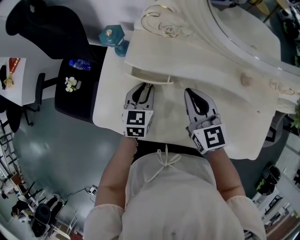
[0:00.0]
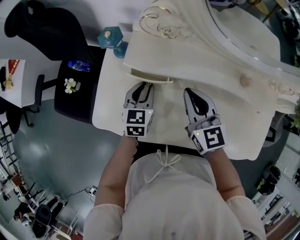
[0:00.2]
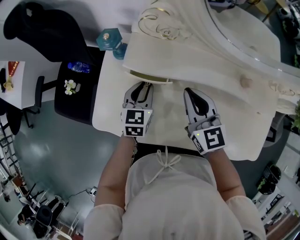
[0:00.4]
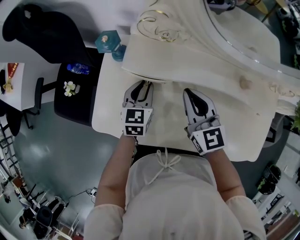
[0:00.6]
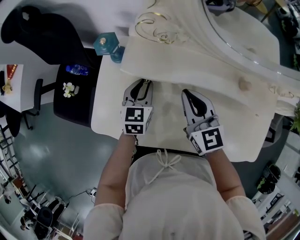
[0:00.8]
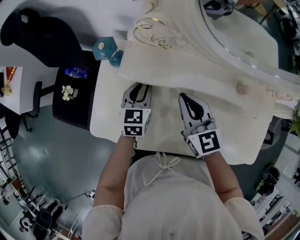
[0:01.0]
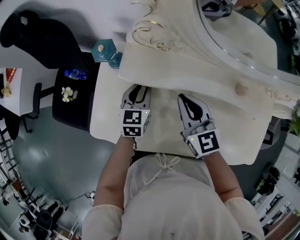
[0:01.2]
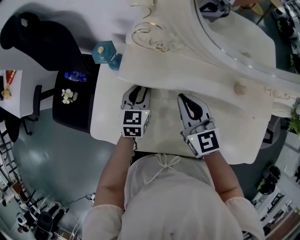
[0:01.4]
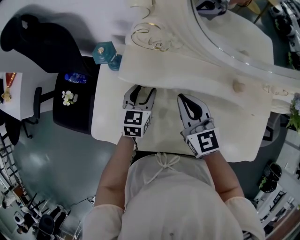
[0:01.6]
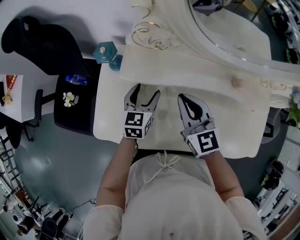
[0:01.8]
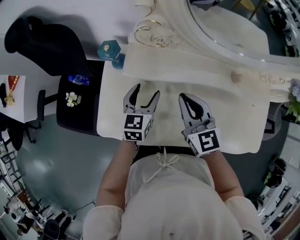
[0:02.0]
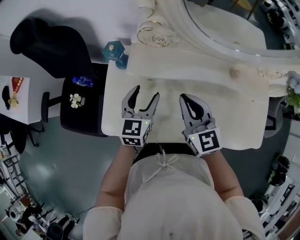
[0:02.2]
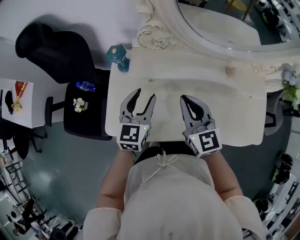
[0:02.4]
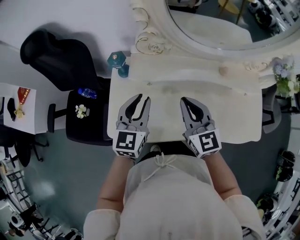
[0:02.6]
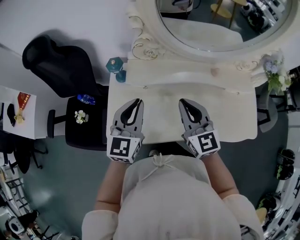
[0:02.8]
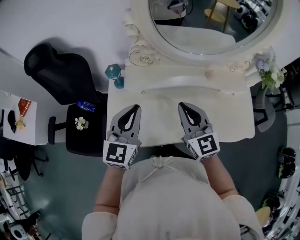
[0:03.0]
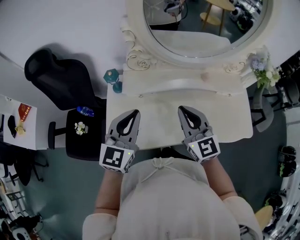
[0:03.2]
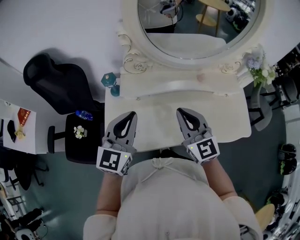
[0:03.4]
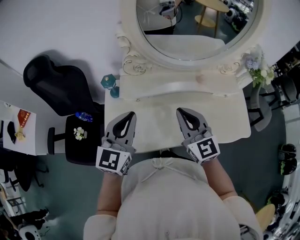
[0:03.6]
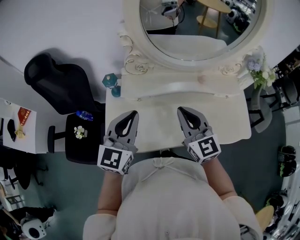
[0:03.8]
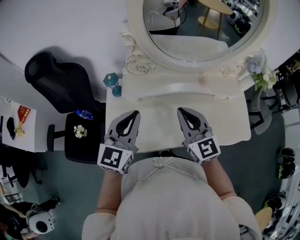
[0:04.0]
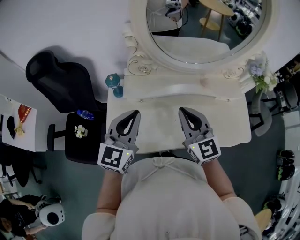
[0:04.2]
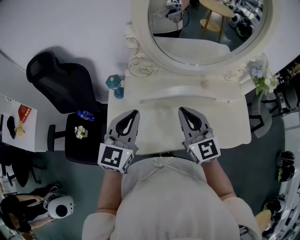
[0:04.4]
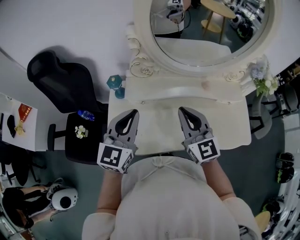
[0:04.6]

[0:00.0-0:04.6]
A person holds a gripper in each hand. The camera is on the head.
0:00.0 to 0:01.6: The left gripper changes place by approximately 5 cm.
0:01.6 to 0:03.0: The left gripper goes about 30 cm upward and backward, changes its angle by approximately 30 degrees, and closes. Meanwhile the right gripper goes some 20 cm upward and backward.
0:03.0 to 0:04.6: There are only small adjustments of the grippers.

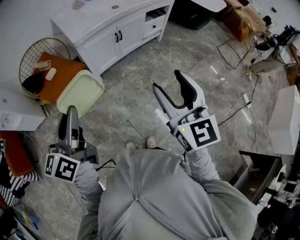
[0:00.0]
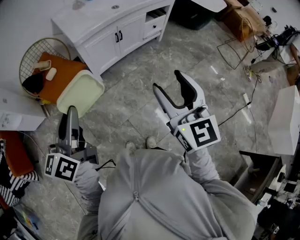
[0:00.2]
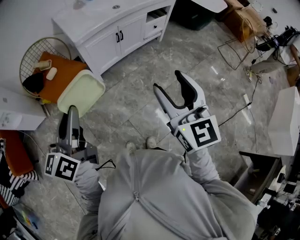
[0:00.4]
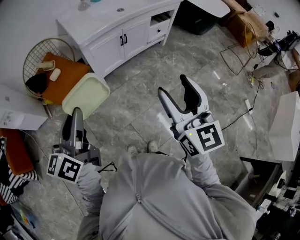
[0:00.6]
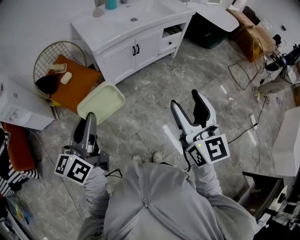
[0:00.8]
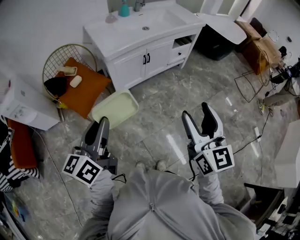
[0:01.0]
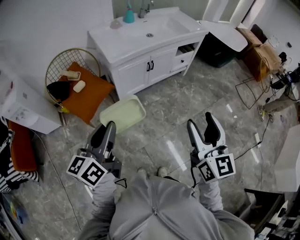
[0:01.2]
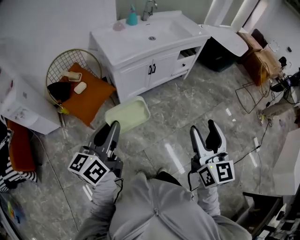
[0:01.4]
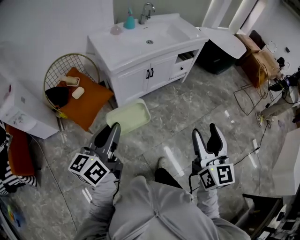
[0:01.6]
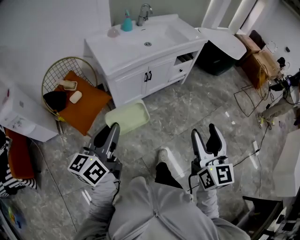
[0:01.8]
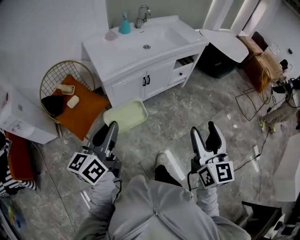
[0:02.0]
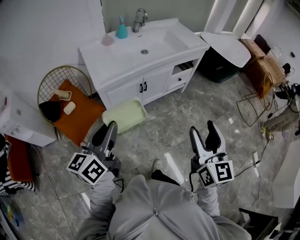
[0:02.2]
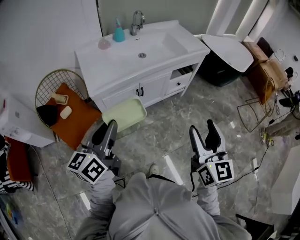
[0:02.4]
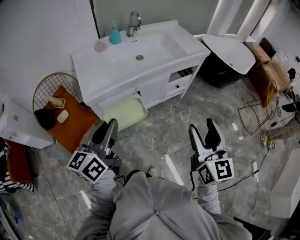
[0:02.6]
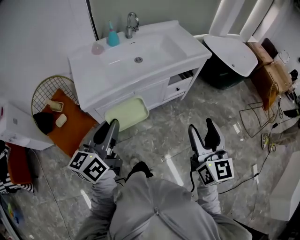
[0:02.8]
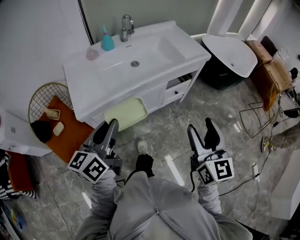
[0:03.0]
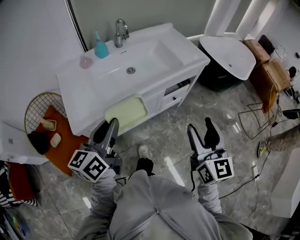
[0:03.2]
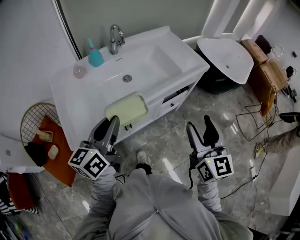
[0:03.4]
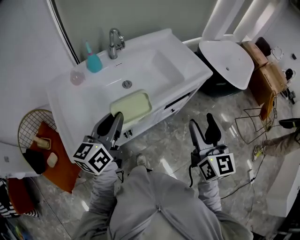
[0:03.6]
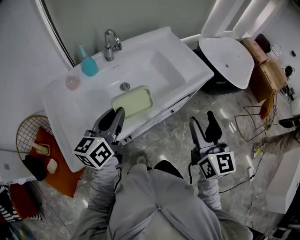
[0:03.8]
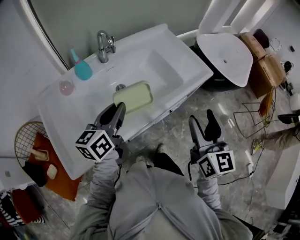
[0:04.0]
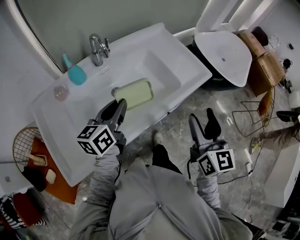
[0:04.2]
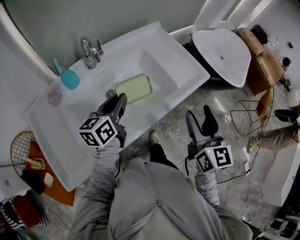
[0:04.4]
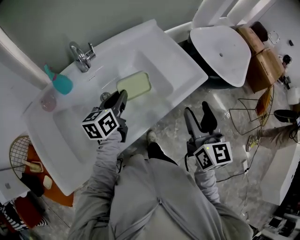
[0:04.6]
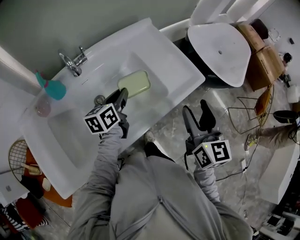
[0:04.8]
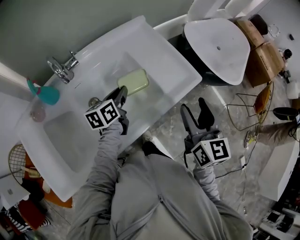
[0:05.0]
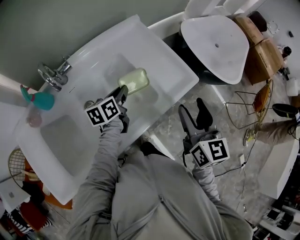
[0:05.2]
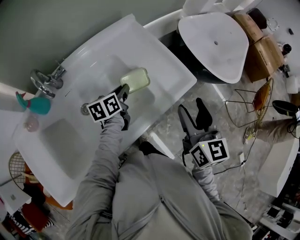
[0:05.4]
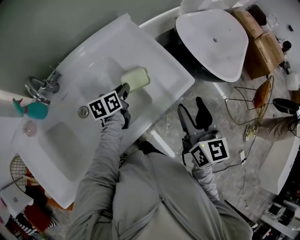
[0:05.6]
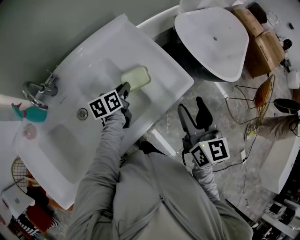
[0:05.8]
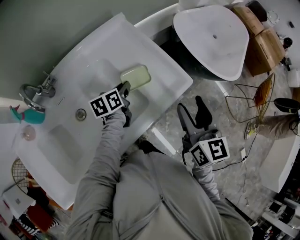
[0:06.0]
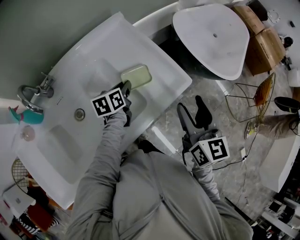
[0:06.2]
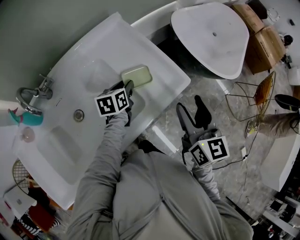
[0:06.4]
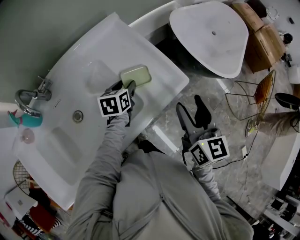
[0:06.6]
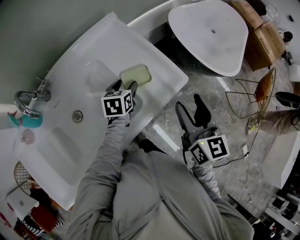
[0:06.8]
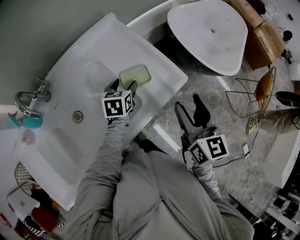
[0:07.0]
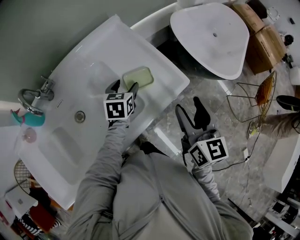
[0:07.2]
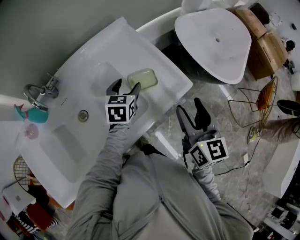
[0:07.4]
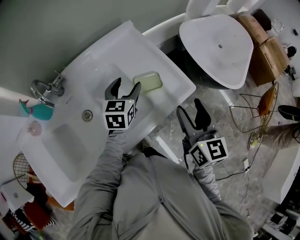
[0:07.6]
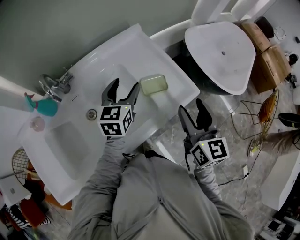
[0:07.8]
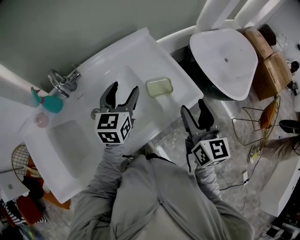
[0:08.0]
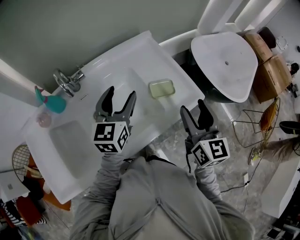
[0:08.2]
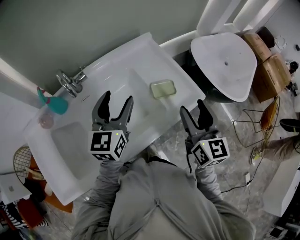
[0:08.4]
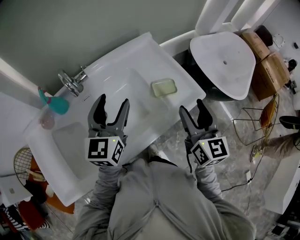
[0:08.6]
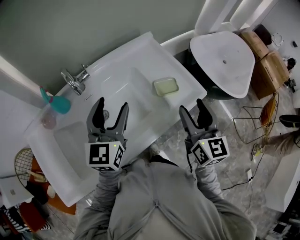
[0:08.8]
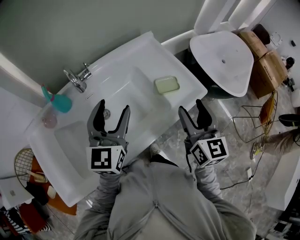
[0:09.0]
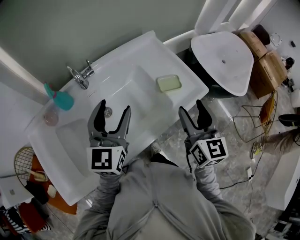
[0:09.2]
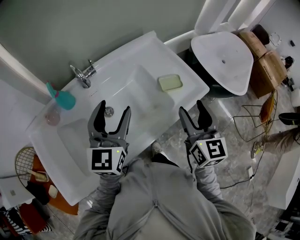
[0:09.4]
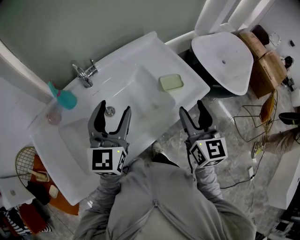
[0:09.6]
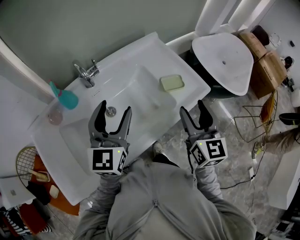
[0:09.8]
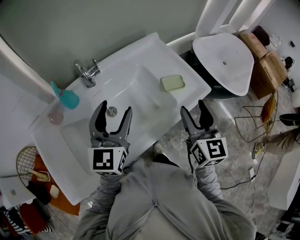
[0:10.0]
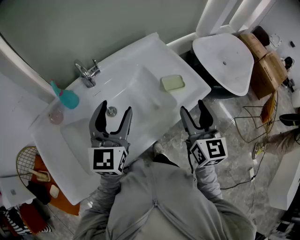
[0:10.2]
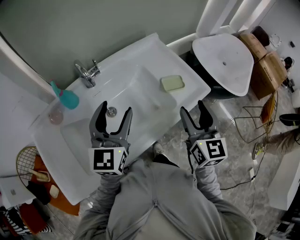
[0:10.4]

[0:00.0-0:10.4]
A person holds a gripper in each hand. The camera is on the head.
0:00.0 to 0:01.4: The left gripper changes place by about 5 cm.
0:01.4 to 0:03.0: Both grippers are carried forward and to the right, roughly 40 cm.
0:03.0 to 0:04.4: The two grippers go about 40 cm forward.
0:04.4 to 0:06.0: The left gripper travels forward, downward and to the right by roughly 35 cm, and swivels about 30 degrees. Meanwhile the right gripper moves forward and to the right, some 20 cm.
0:06.0 to 0:07.4: The left gripper travels upward by approximately 5 cm, rotates approximately 30 degrees, and opens.
0:07.4 to 0:09.0: The right gripper travels to the left by roughly 10 cm; the left gripper moves upward, to the left and backward, approximately 30 cm, and tips its fingers upward by about 30 degrees.
0:09.0 to 0:10.4: The grippers stay close to where they were, moving slightly.

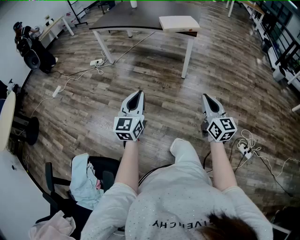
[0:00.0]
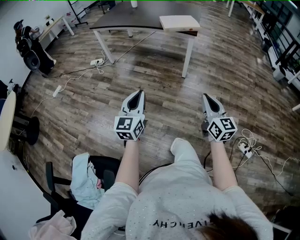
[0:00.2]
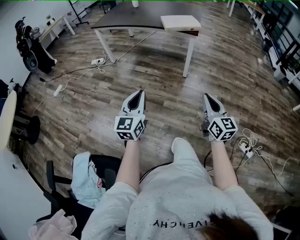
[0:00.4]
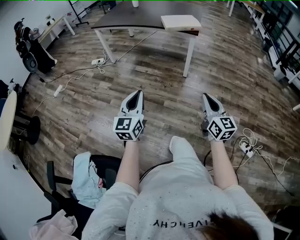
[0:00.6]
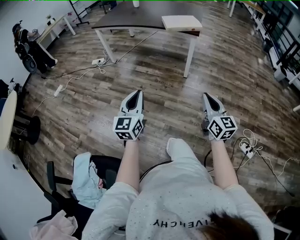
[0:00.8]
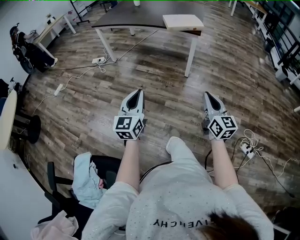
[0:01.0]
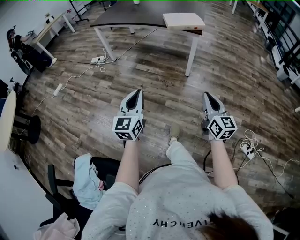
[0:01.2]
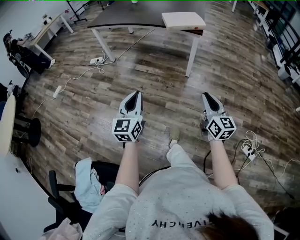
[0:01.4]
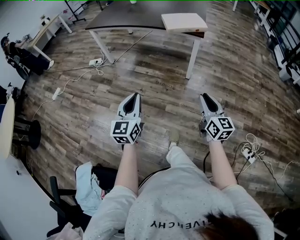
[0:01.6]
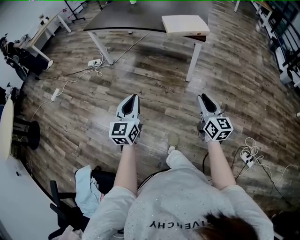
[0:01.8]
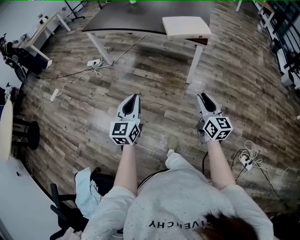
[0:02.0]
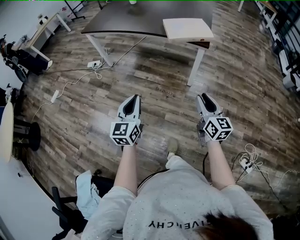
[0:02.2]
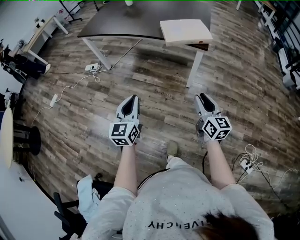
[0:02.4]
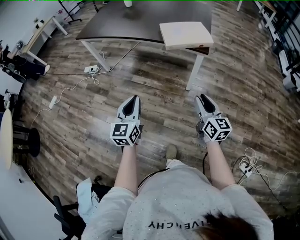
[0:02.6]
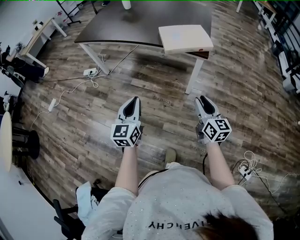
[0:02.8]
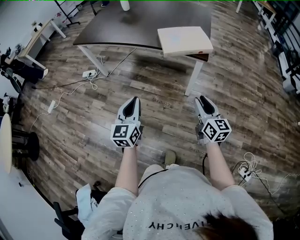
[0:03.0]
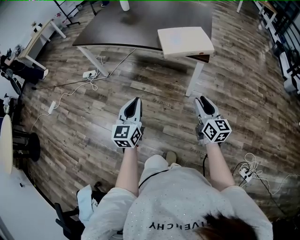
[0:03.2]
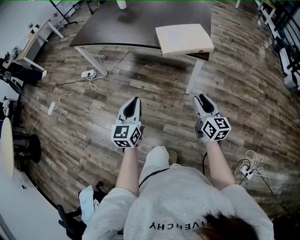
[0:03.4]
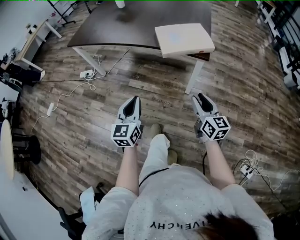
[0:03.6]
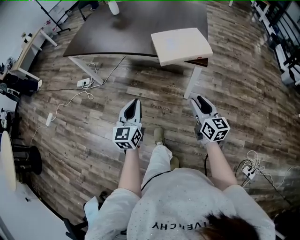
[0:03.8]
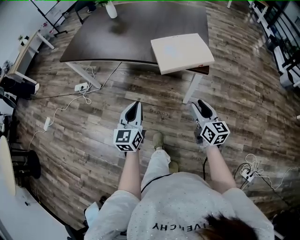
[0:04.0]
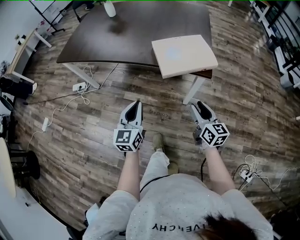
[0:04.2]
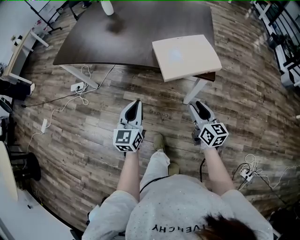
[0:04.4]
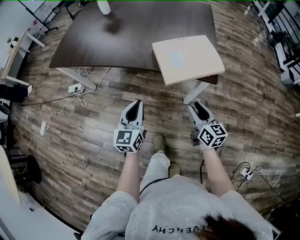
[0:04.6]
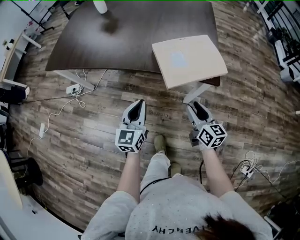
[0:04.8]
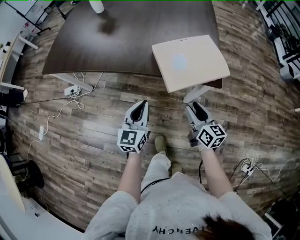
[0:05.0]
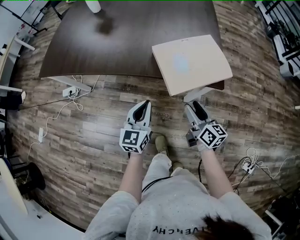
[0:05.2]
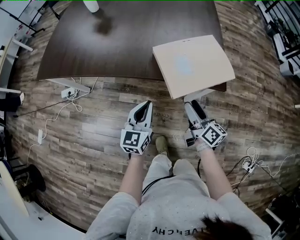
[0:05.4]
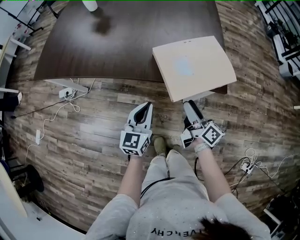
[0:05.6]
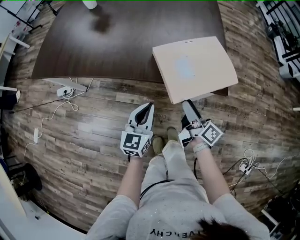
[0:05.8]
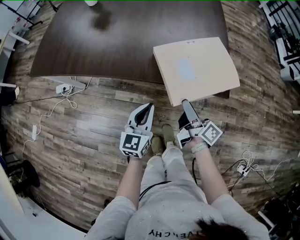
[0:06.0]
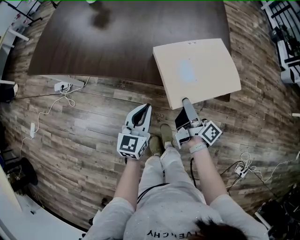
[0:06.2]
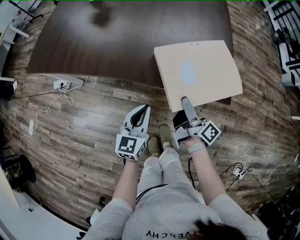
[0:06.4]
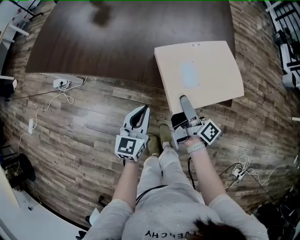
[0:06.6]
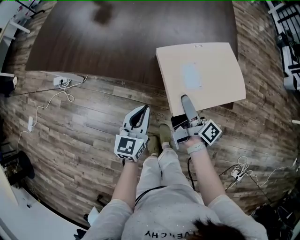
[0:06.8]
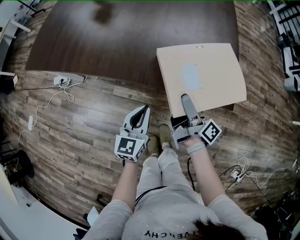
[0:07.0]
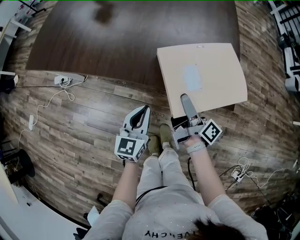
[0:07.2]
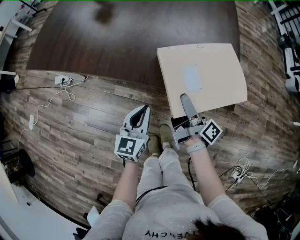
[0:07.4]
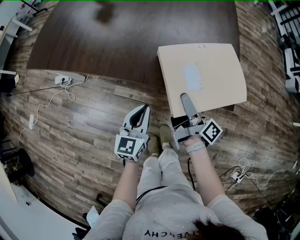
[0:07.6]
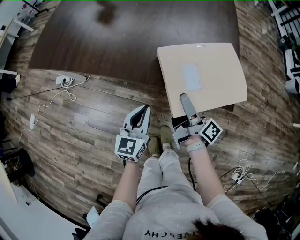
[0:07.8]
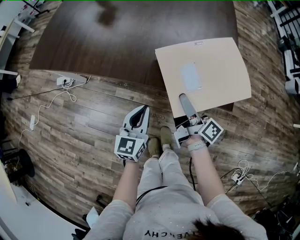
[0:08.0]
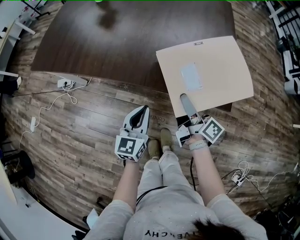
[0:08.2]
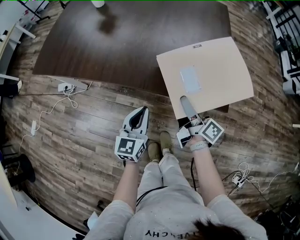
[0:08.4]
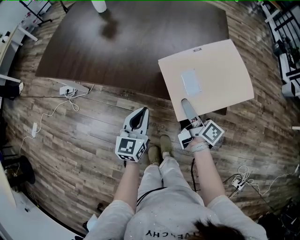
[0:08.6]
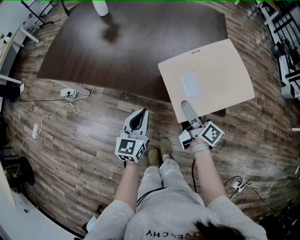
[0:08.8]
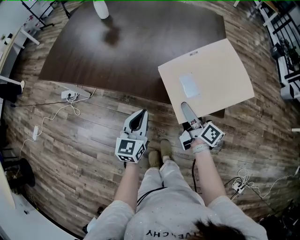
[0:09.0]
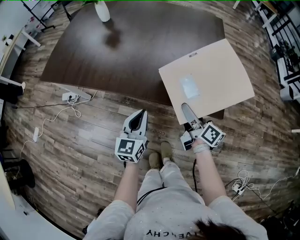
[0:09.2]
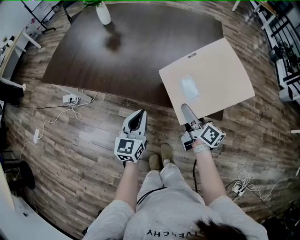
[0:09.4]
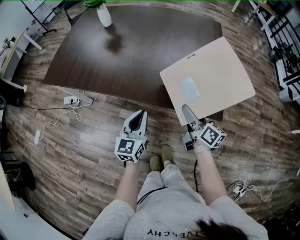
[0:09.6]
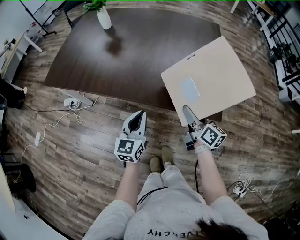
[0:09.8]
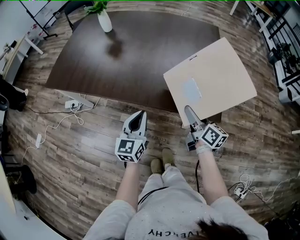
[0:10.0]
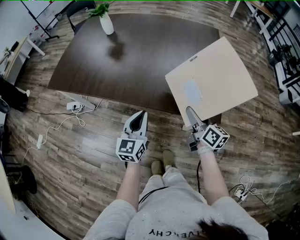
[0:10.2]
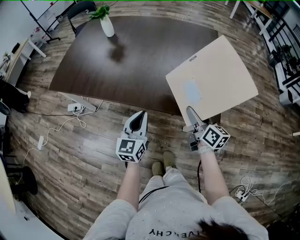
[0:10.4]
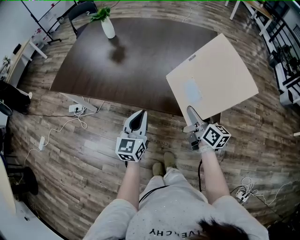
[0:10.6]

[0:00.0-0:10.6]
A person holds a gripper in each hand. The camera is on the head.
0:00.0 to 0:01.6: Both grippers travel together forward, some 15 cm.
0:01.6 to 0:03.0: Both grippers travel together forward, some 30 cm.
0:03.0 to 0:04.6: The two grippers go approximately 30 cm forward.
0:04.6 to 0:06.0: The left gripper moves forward and downward, about 15 cm; the right gripper shifts about 15 cm forward, rotates around the line of its fingers by roughly 40 degrees, clockwise from behind, and opens.
0:06.0 to 0:07.6: The right gripper is displaced forward by some 5 cm.
0:07.6 to 0:09.0: The two grippers go about 5 cm upward. The right gripper turns by some 30 degrees.
0:09.0 to 0:10.6: Both grippers move upward, about 10 cm. The right gripper swivels some 20 degrees.
